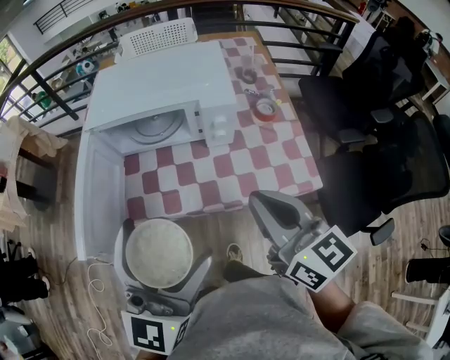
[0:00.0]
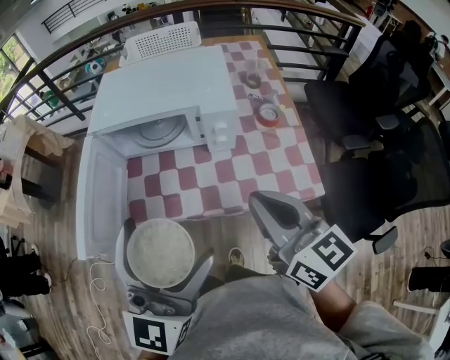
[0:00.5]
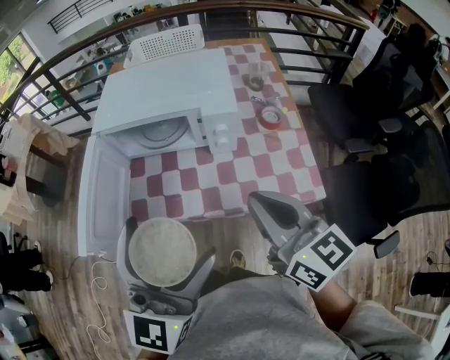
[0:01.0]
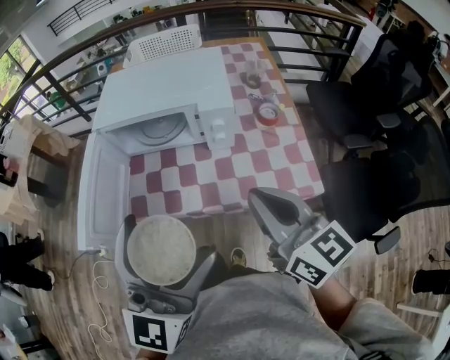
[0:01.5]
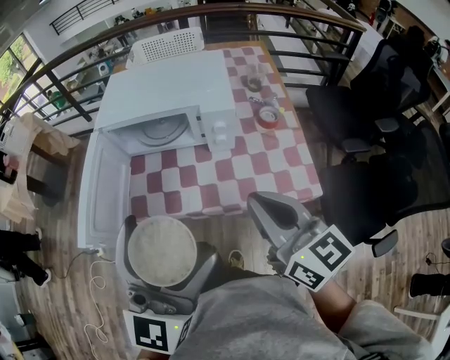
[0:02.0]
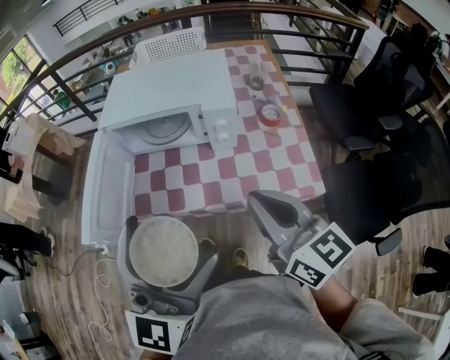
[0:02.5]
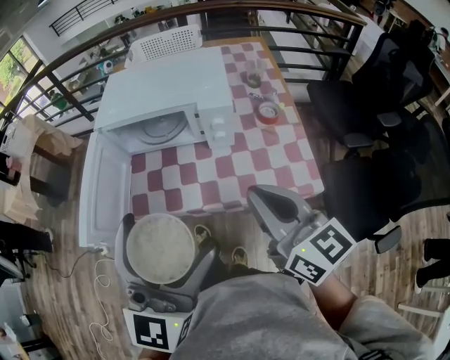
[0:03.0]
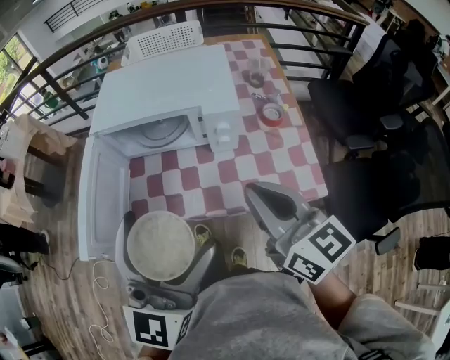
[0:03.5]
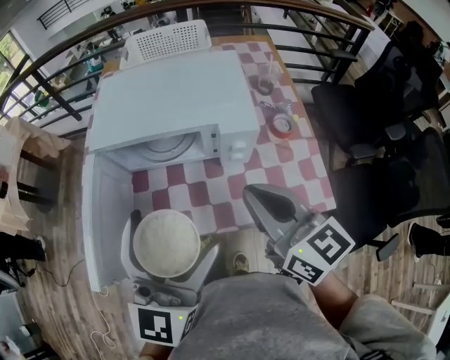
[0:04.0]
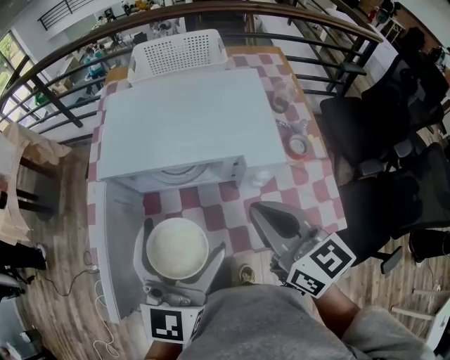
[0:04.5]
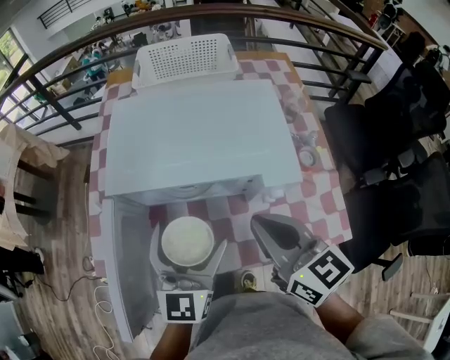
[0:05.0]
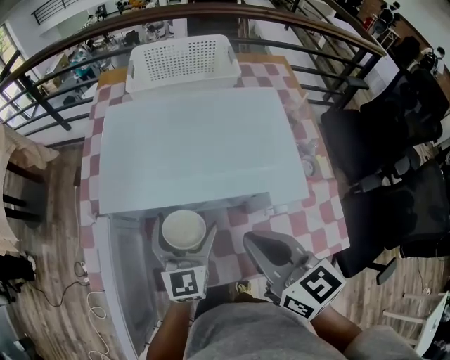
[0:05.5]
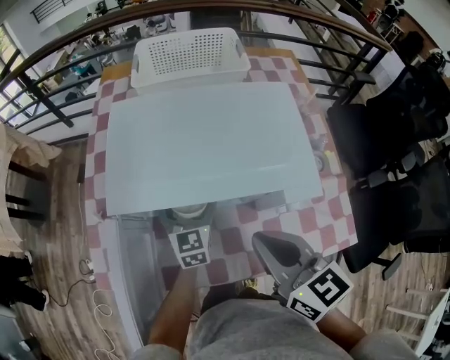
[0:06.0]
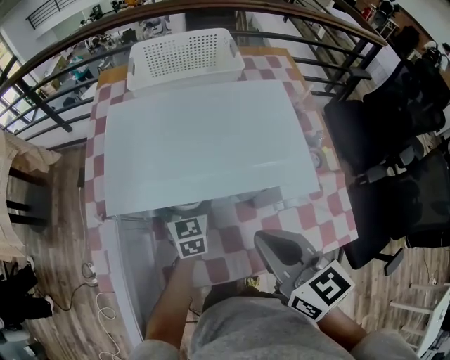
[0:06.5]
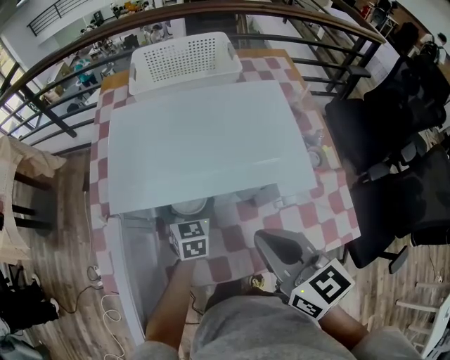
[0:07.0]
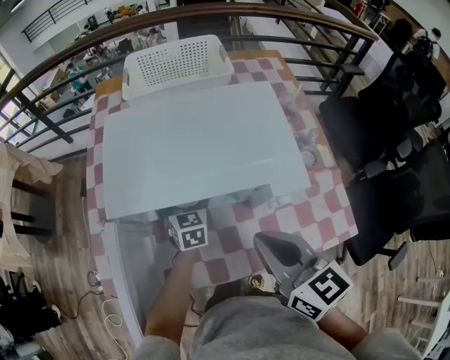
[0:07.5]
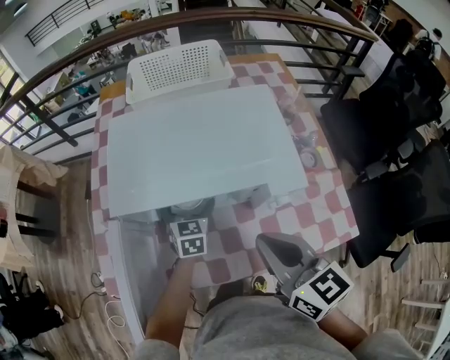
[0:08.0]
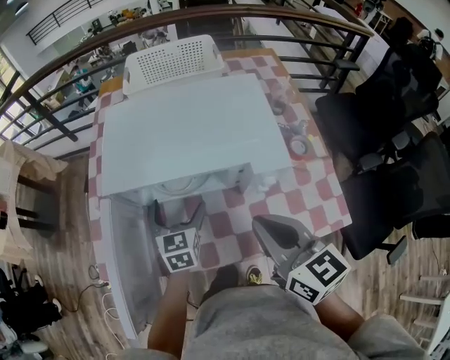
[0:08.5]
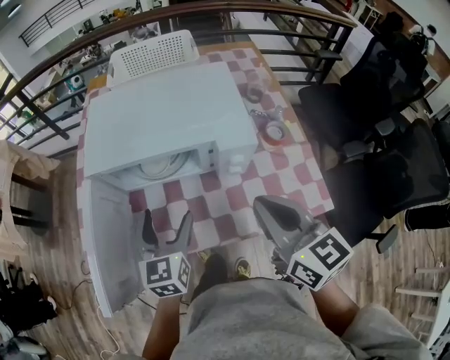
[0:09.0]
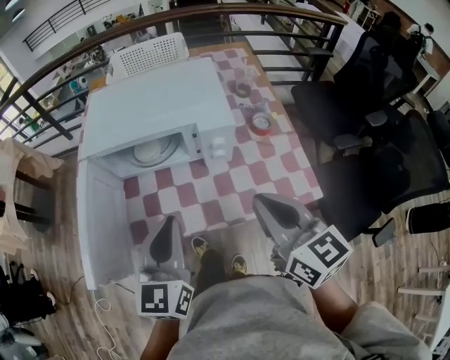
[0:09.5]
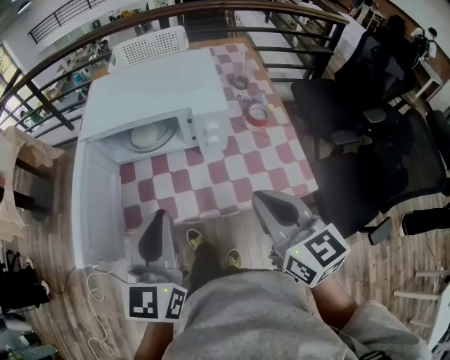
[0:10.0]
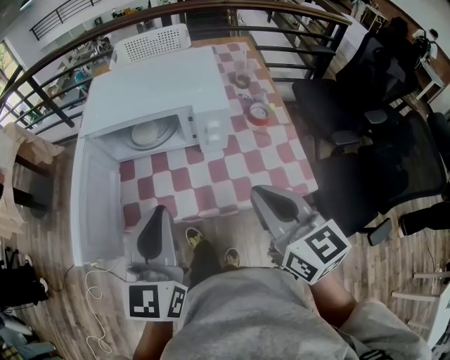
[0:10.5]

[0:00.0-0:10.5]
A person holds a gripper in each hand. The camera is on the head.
0:00.0 to 0:02.0: The grippers make only small movements.
0:02.0 to 0:04.0: Both grippers travel together forward, some 10 cm.
0:04.0 to 0:06.5: The left gripper is displaced forward and downward by about 40 cm, and tips its fingers downward by about 30 degrees, while the right gripper shifts some 15 cm forward, to the left and downward.
0:06.5 to 0:08.5: The left gripper travels backward by some 10 cm. Meanwhile the right gripper ends up approximately 5 cm from where it was.
0:08.5 to 0:10.5: The right gripper goes roughly 20 cm backward and to the right. Meanwhile the left gripper heads backward and upward, covering some 35 cm, changes its angle by roughly 20 degrees, and closes.

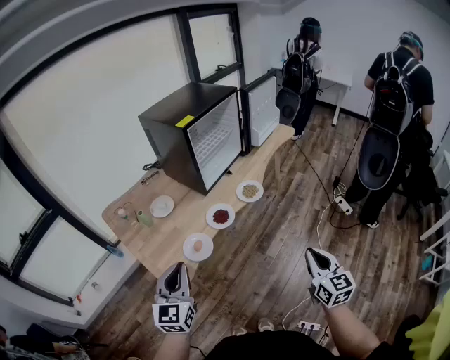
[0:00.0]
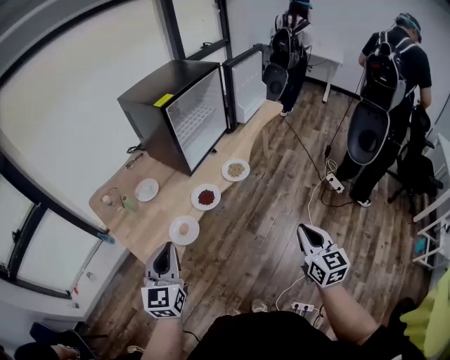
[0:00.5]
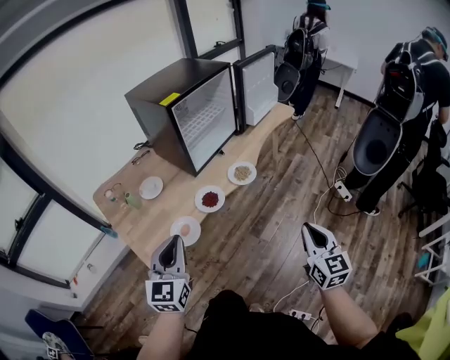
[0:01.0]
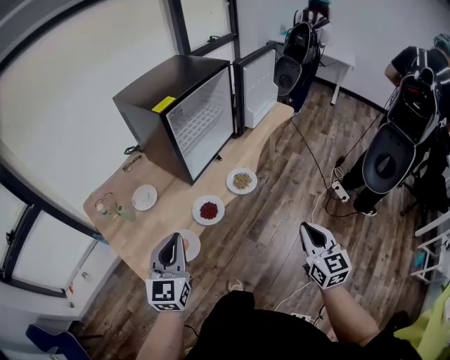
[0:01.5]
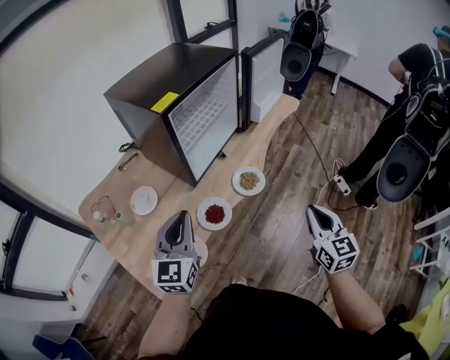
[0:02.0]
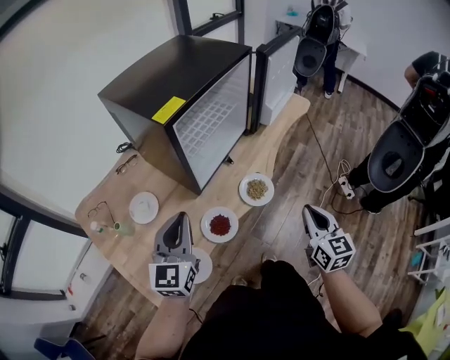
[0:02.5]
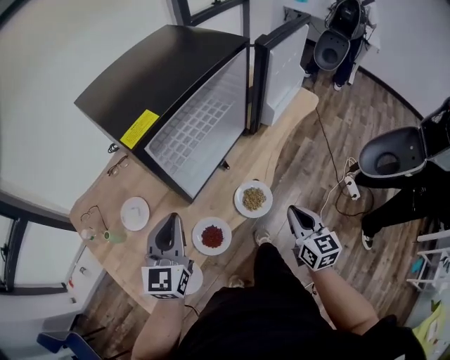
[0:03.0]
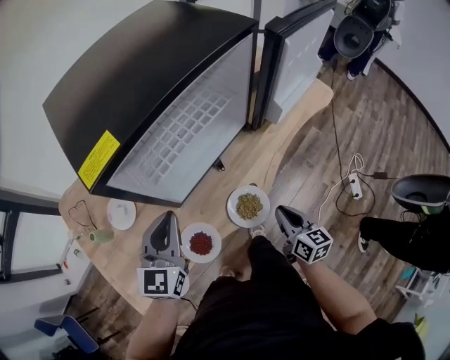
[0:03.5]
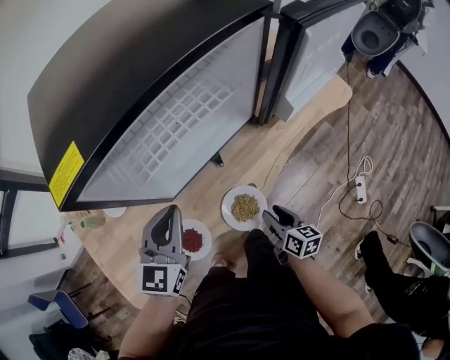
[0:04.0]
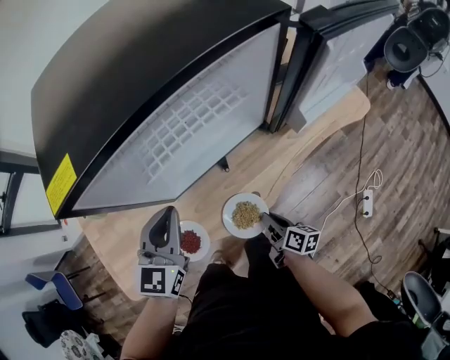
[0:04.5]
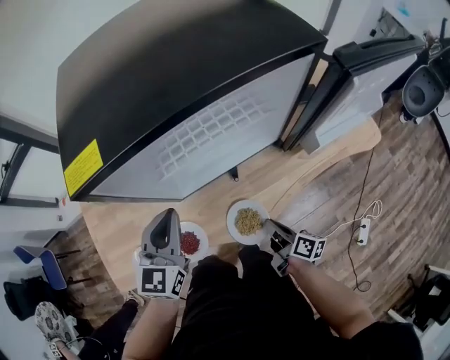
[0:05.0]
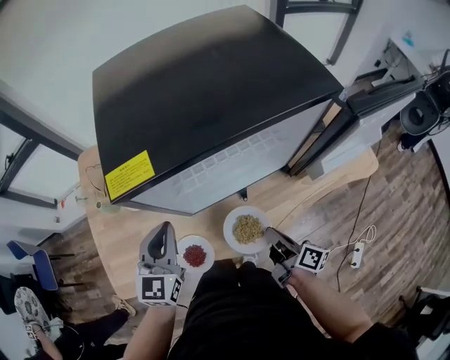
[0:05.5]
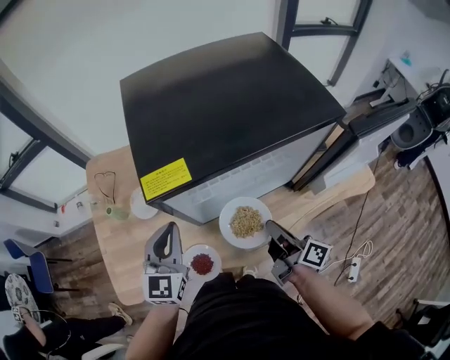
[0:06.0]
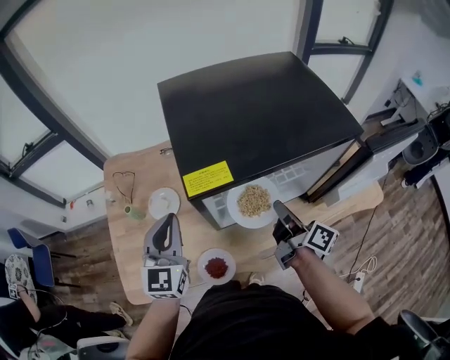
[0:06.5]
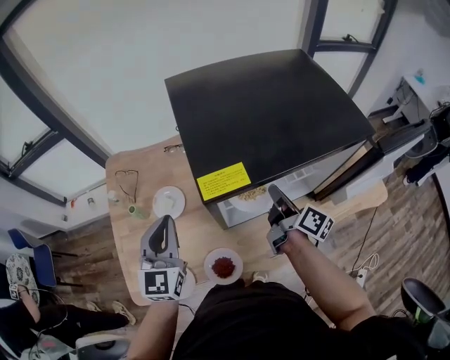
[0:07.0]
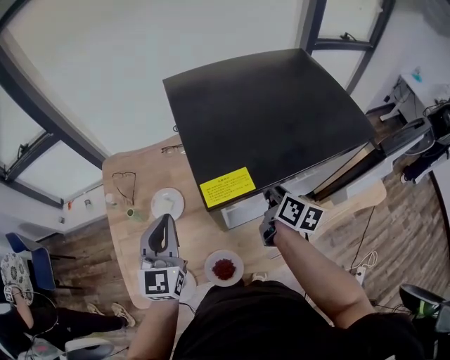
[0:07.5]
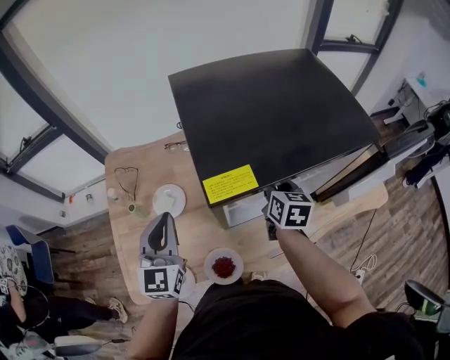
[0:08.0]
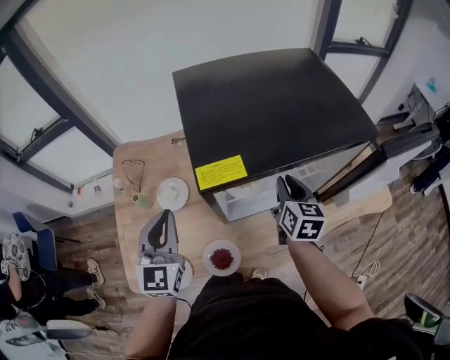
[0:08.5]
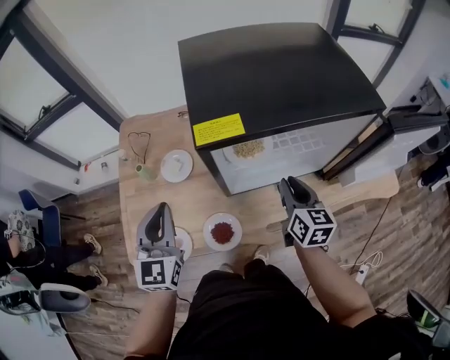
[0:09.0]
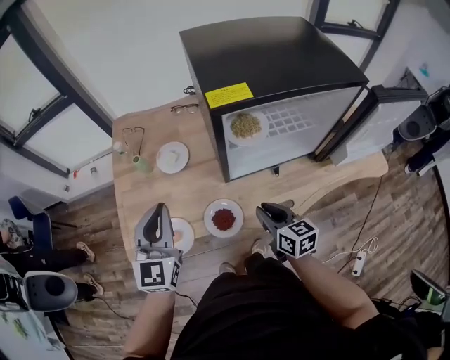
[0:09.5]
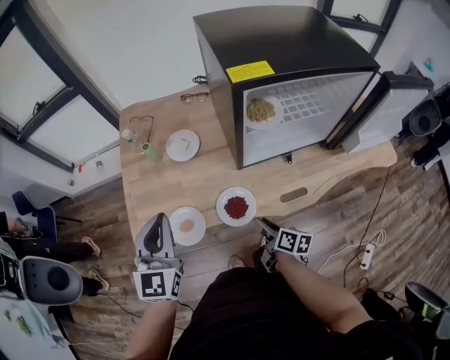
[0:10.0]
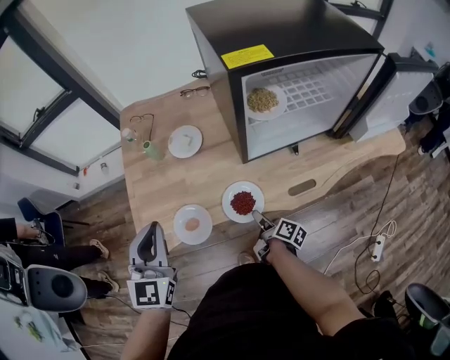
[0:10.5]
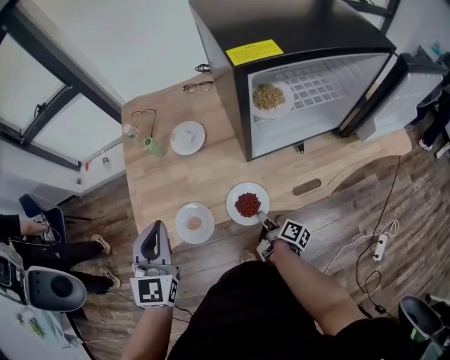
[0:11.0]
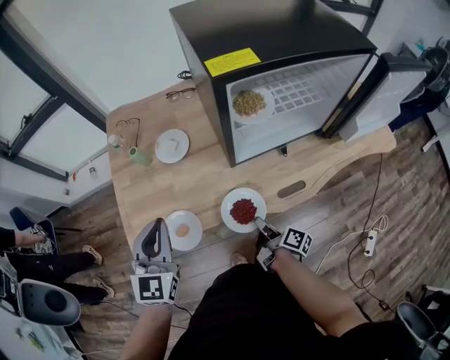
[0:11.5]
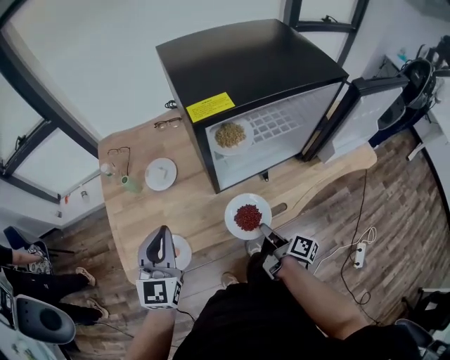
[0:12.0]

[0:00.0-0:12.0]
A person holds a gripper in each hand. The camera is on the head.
0:00.0 to 0:02.0: Both grippers travel together forward, some 25 cm.
0:02.0 to 0:04.0: The left gripper heads forward, downward and to the right, covering some 25 cm; the right gripper shifts roughly 35 cm downward and forward, rotates some 50 degrees, and opens its fingers.
0:04.0 to 0:06.0: The right gripper heads upward and forward, covering some 25 cm, changes its angle by about 40 degrees, and closes its fingers. The left gripper travels to the left and upward by some 10 cm, and turns by about 30 degrees.
0:06.0 to 0:08.0: The left gripper shifts roughly 10 cm to the left. The right gripper goes about 15 cm forward, and changes its angle by roughly 50 degrees.
0:08.0 to 0:10.0: The left gripper heads backward and to the left, covering approximately 20 cm, while the right gripper shifts roughly 40 cm backward, downward and to the left, and rotates roughly 40 degrees.
0:10.0 to 0:12.0: The right gripper moves to the right and upward, roughly 10 cm, turns by some 30 degrees, and closes its fingers. The left gripper goes about 5 cm to the right.

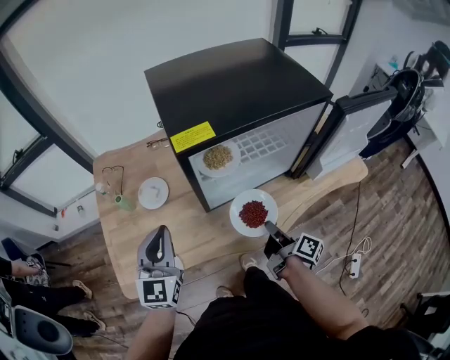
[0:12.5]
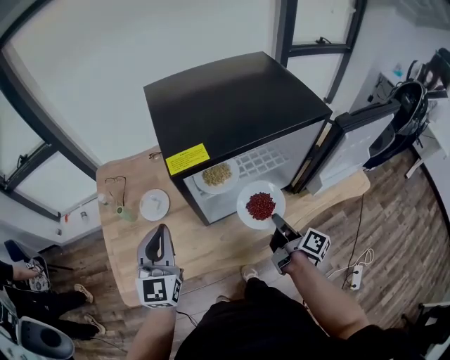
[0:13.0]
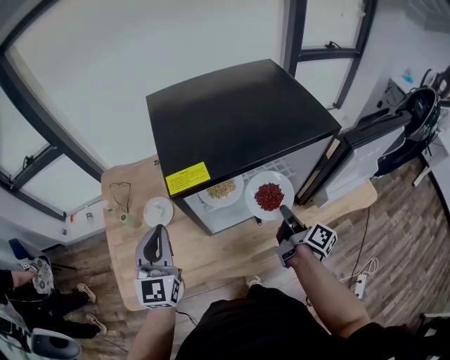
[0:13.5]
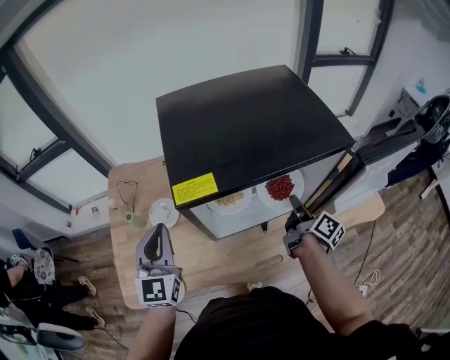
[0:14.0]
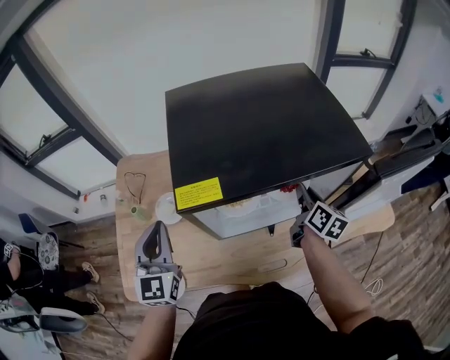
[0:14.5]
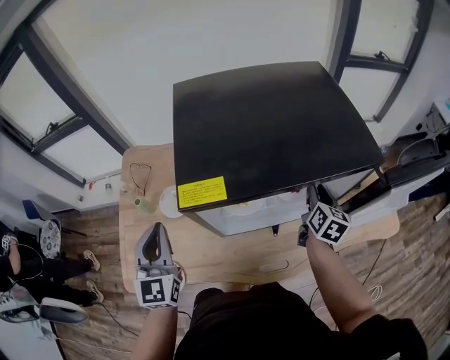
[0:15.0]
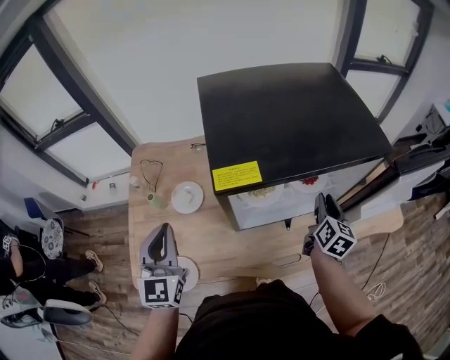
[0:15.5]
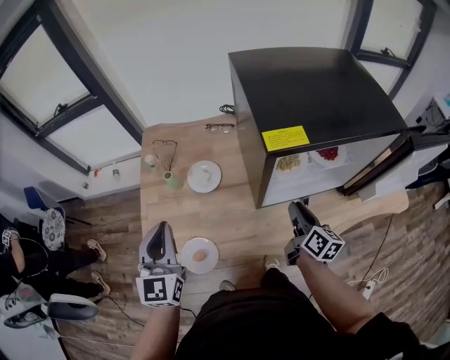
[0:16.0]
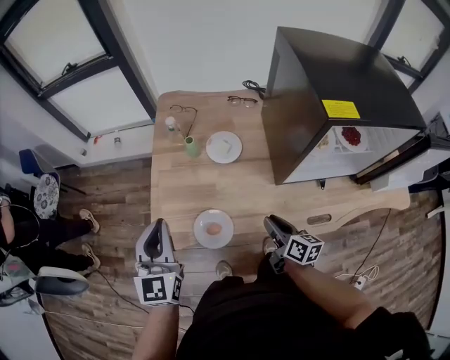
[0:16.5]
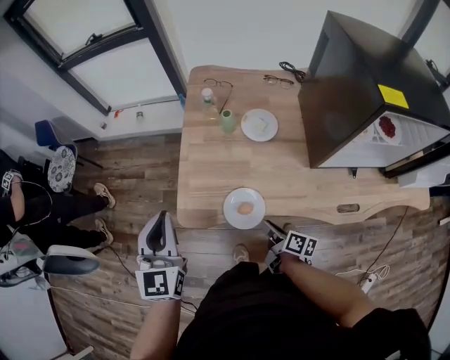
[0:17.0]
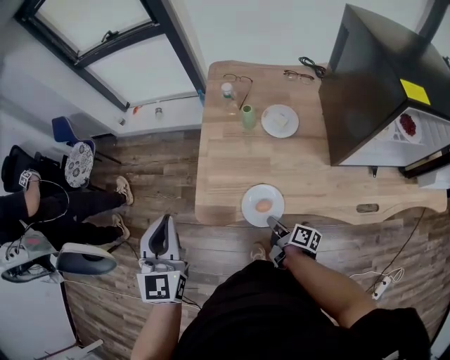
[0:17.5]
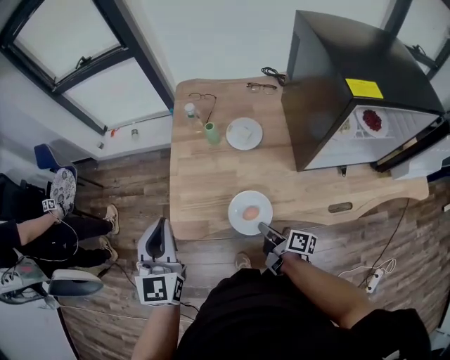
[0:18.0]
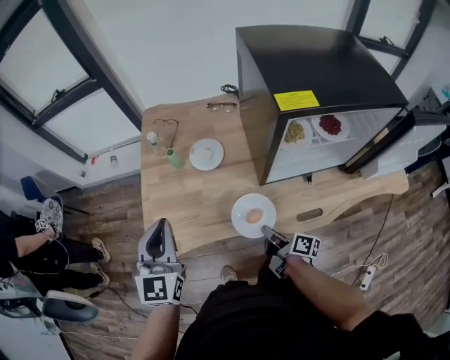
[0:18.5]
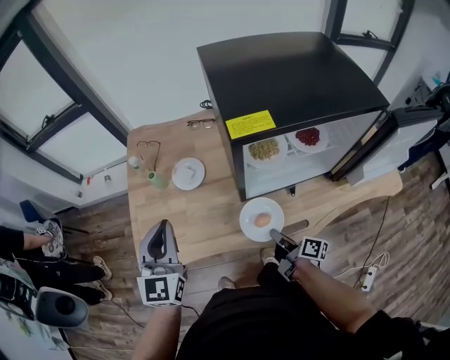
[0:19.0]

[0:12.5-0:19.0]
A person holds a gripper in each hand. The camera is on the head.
0:12.5 to 0:14.5: The left gripper is displaced forward by roughly 10 cm. Meanwhile the right gripper travels forward and to the right by some 25 cm, and swivels approximately 40 degrees.
0:14.5 to 0:17.0: The right gripper moves some 60 cm, and swivels roughly 40 degrees. Meanwhile the left gripper ends up approximately 40 cm from where it was.
0:17.0 to 0:19.0: Both grippers travel together to the right, approximately 25 cm. The right gripper closes up.
